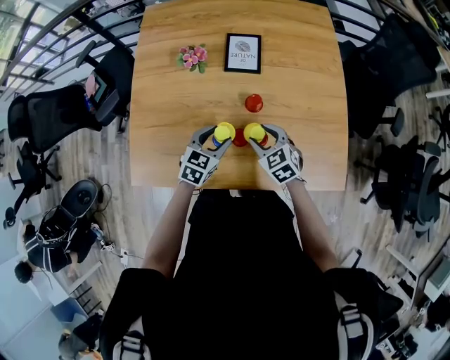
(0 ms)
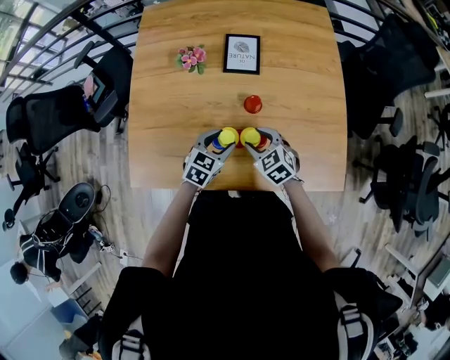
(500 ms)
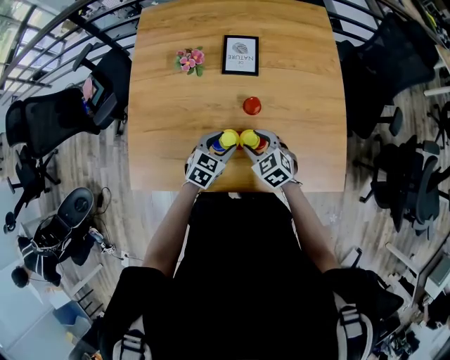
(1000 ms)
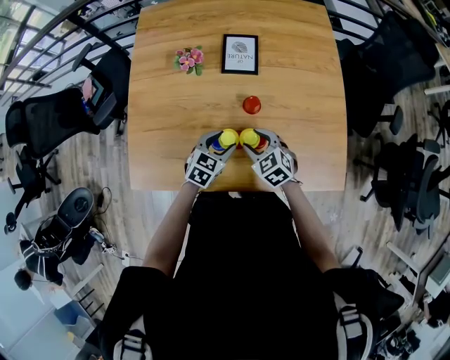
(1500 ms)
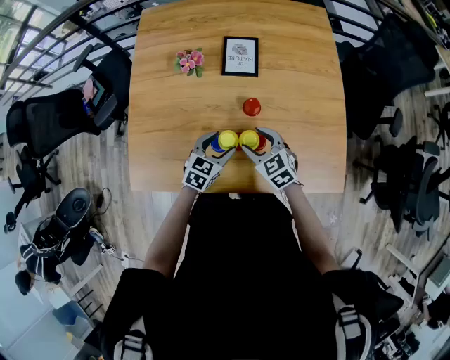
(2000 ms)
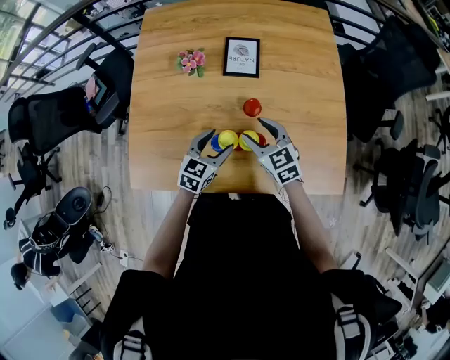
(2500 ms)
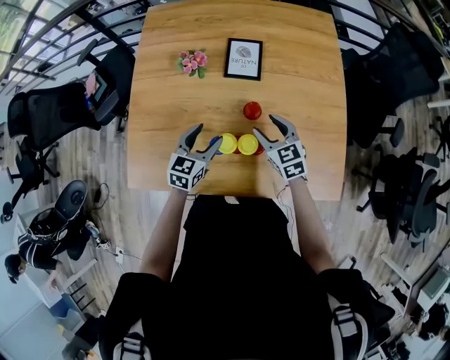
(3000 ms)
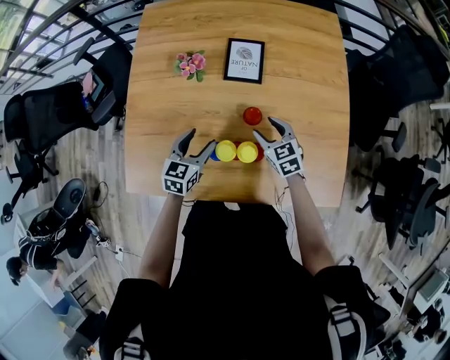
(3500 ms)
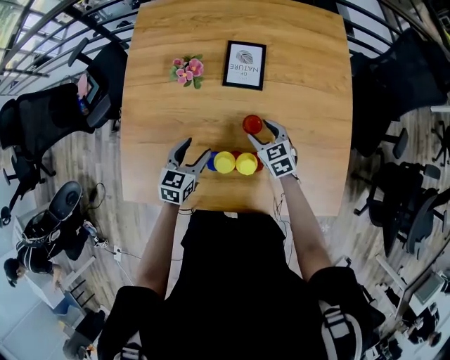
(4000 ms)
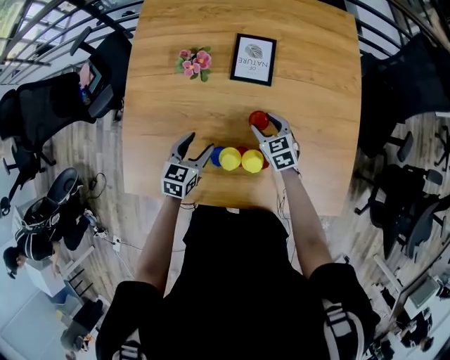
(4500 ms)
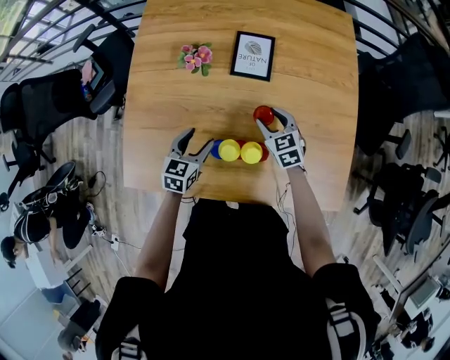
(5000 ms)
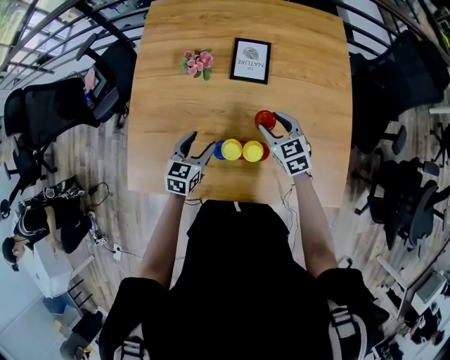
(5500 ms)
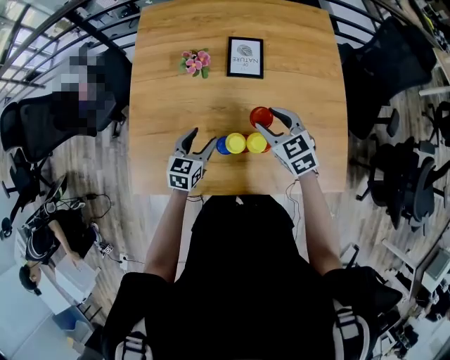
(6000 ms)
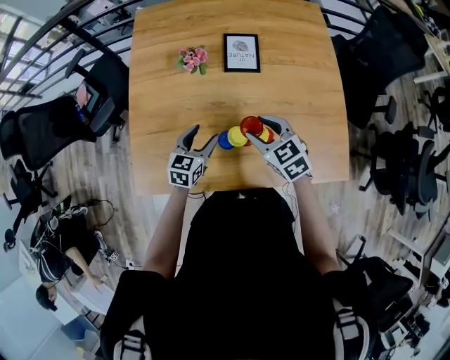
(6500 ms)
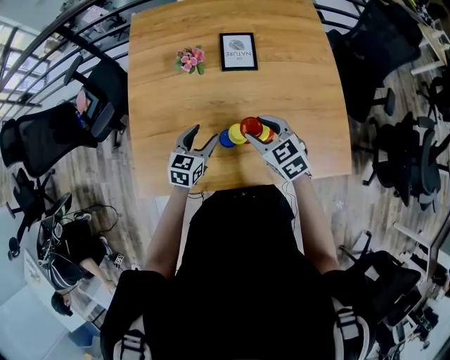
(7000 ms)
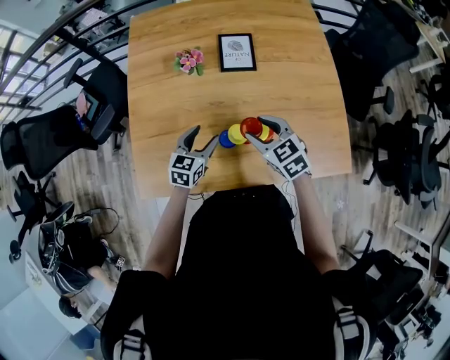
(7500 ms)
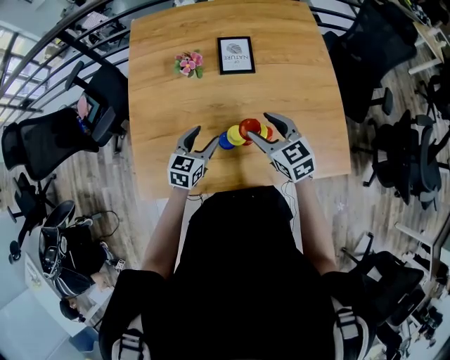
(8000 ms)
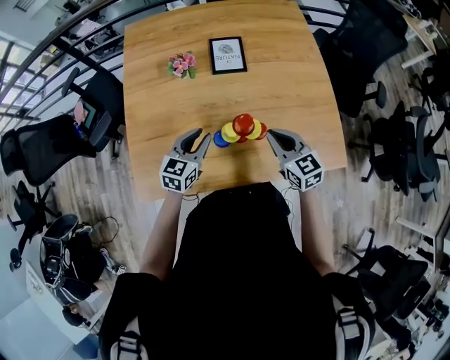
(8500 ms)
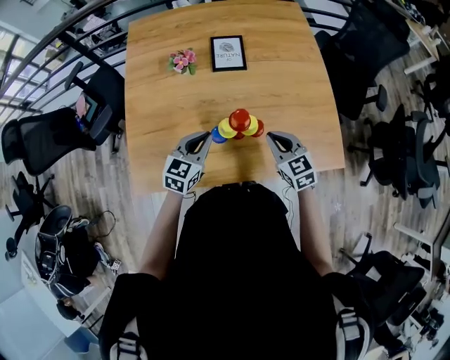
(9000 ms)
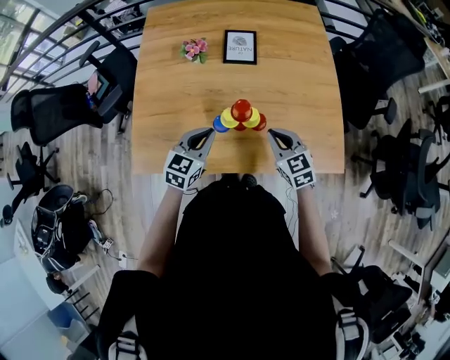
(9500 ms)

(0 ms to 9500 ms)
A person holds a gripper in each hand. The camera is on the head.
0 ms - 2000 ms: There are only small adjustments of the grippers.
2000 ms - 4000 ms: The left gripper shifts roughly 10 cm to the left and forward; the right gripper heads forward and downward, covering approximately 15 cm.
4000 ms - 5500 ms: The right gripper shifts roughly 10 cm upward.
5500 ms - 7500 ms: The right gripper travels backward, to the left and upward by roughly 15 cm.
7500 ms - 9500 ms: The right gripper is displaced to the right and backward by approximately 10 cm, and closes its fingers, while the left gripper travels backward, upward and to the right by some 10 cm, and closes.

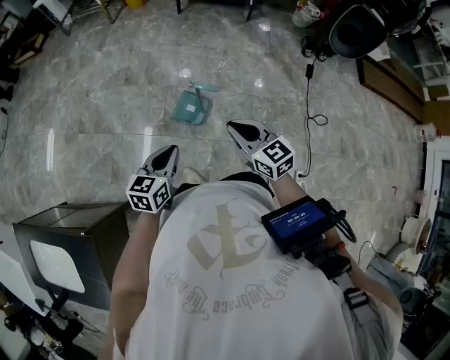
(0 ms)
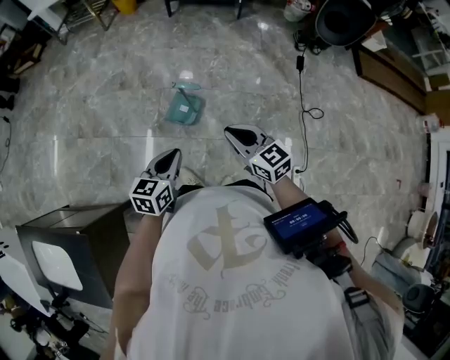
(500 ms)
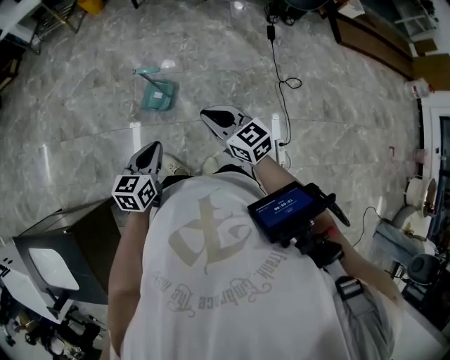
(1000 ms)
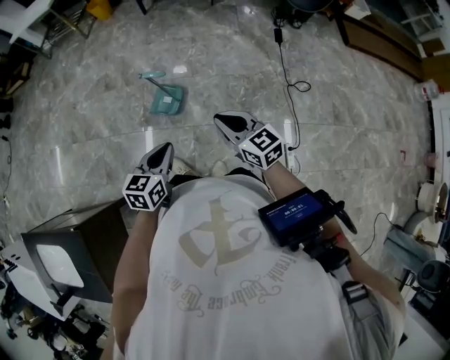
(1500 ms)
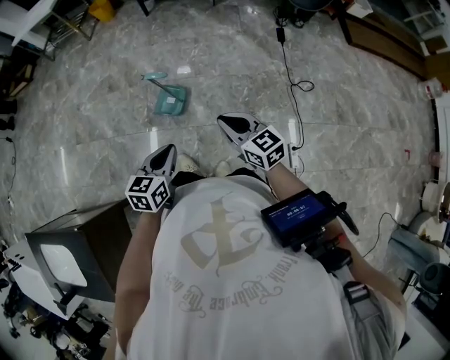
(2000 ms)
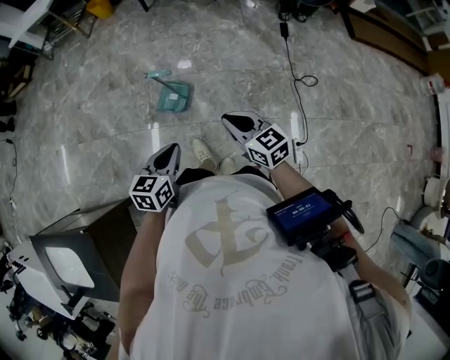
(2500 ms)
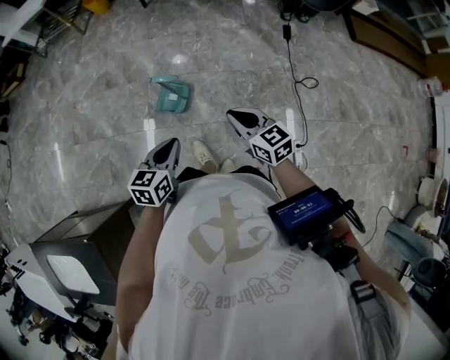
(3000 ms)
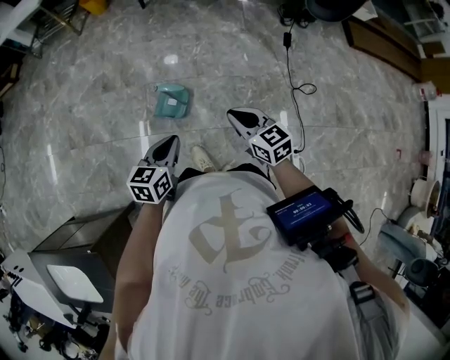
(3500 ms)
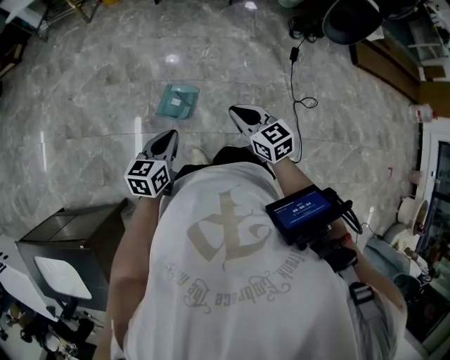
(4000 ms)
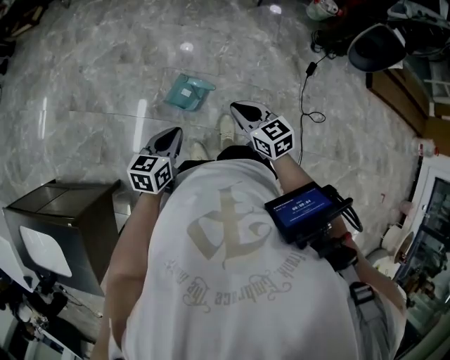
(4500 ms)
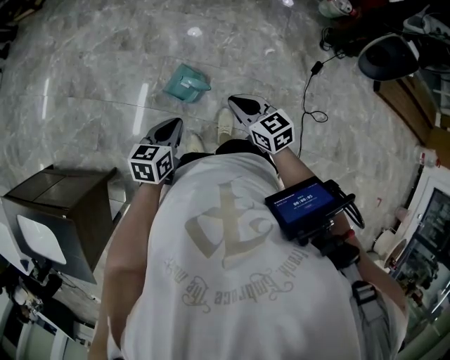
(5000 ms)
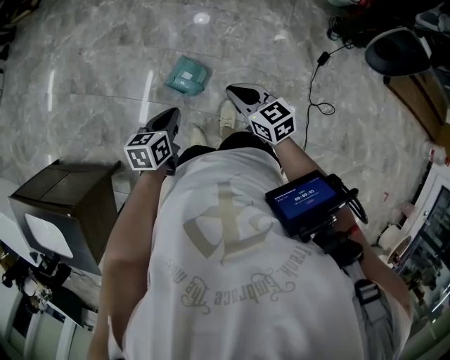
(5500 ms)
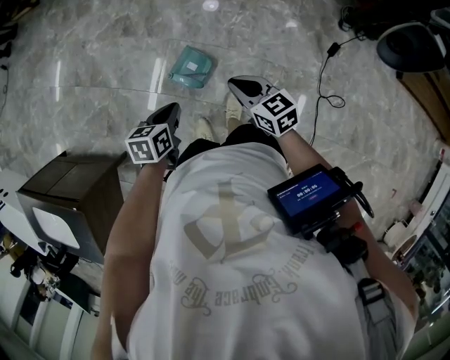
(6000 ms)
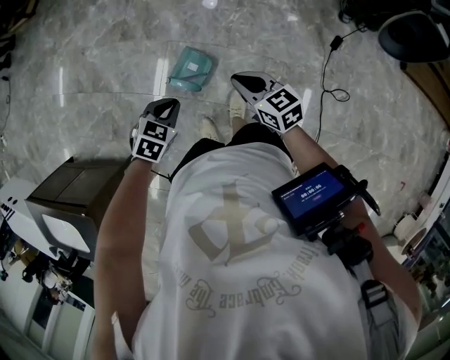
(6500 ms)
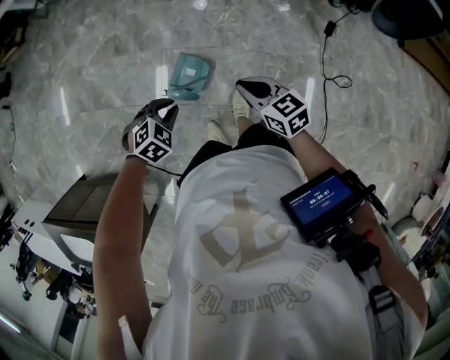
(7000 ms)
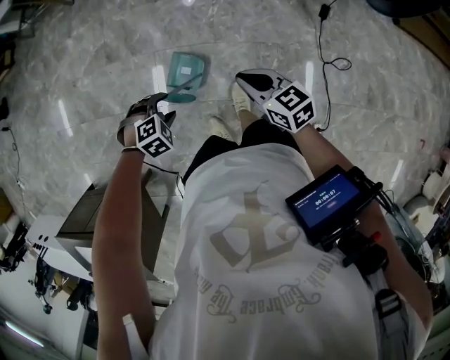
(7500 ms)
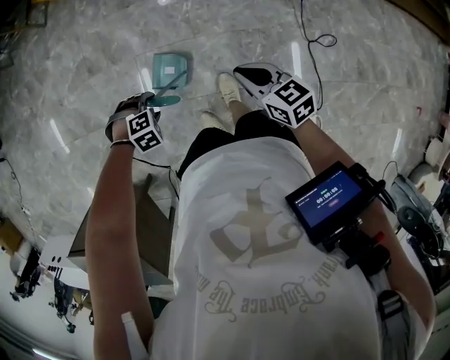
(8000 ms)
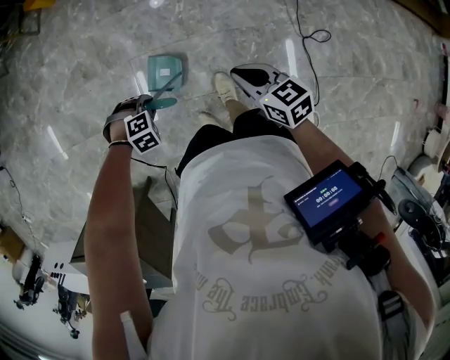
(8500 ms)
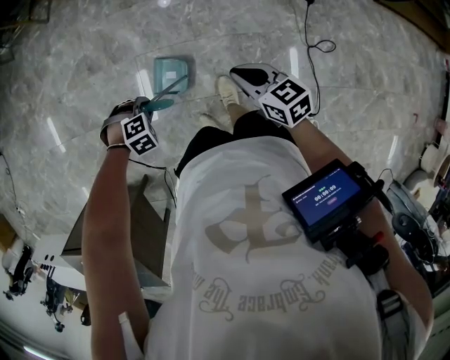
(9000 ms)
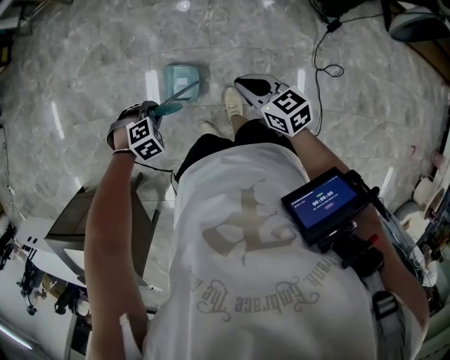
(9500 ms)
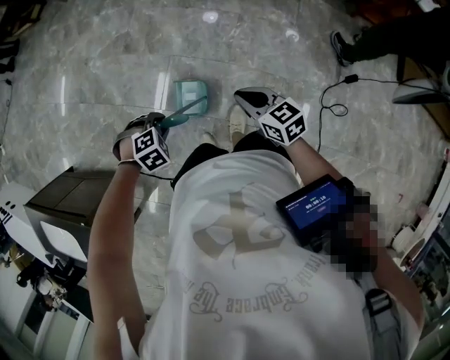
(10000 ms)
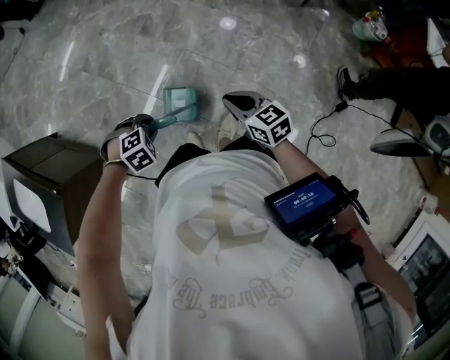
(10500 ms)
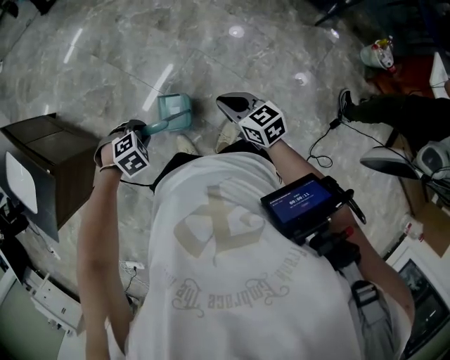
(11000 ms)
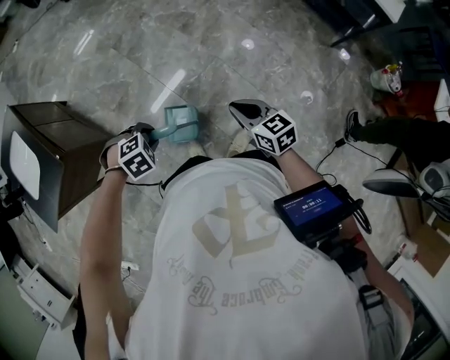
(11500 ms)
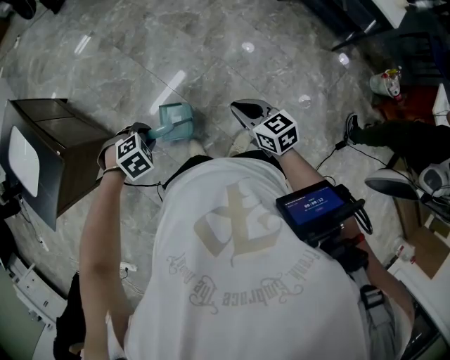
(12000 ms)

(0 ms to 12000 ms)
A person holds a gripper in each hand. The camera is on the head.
0 ms - 2000 ms: The two grippers go approximately 15 cm to the right and backward.
2000 ms - 4000 ms: Both grippers travel together forward and to the left, some 15 cm.
4000 ms - 6000 ms: The two grippers go approximately 10 cm forward and downward. The left gripper swivels about 30 degrees.
6000 ms - 8000 ms: The right gripper ends up approximately 10 cm from where it was, and changes its angle by roughly 20 degrees. Meanwhile the left gripper is displaced downward by about 10 cm, rolls clockwise, seen from behind, by some 100 degrees, and opens.
8000 ms - 10000 ms: The right gripper changes place by approximately 10 cm, and swivels some 20 degrees, while the left gripper goes some 10 cm upward, changes its angle by some 30 degrees, and closes up.
10000 ms - 12000 ms: The right gripper changes place by approximately 10 cm, and rotates some 30 degrees, while the left gripper ends up roughly 15 cm from where it was, and swivels approximately 30 degrees.

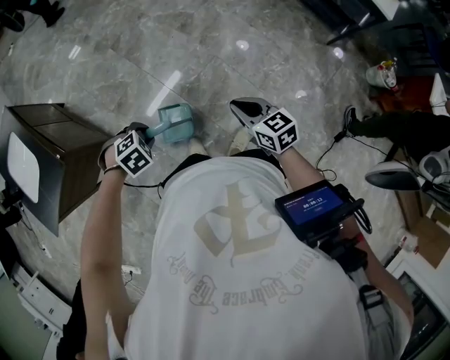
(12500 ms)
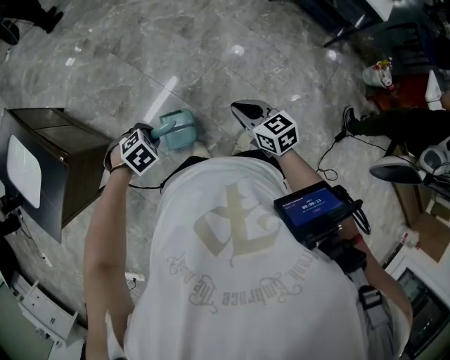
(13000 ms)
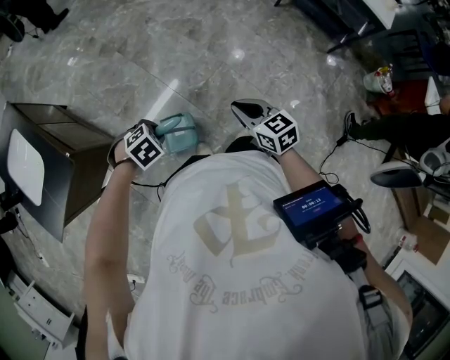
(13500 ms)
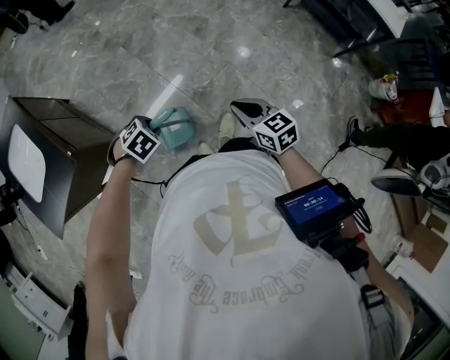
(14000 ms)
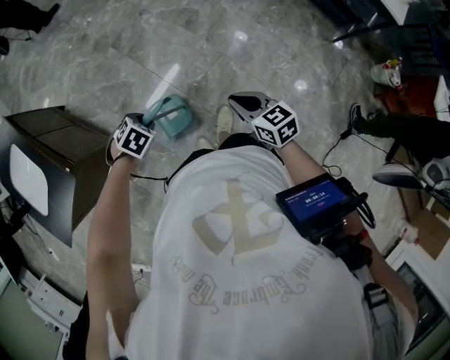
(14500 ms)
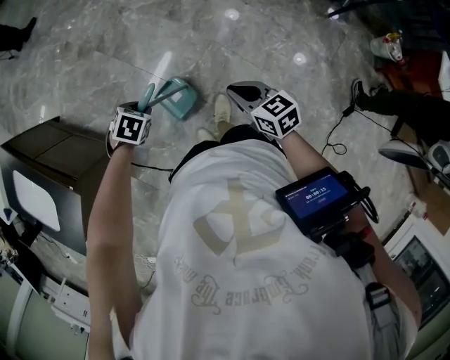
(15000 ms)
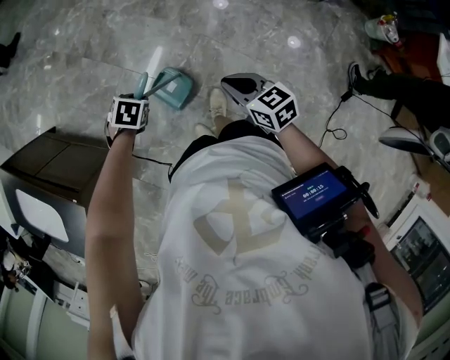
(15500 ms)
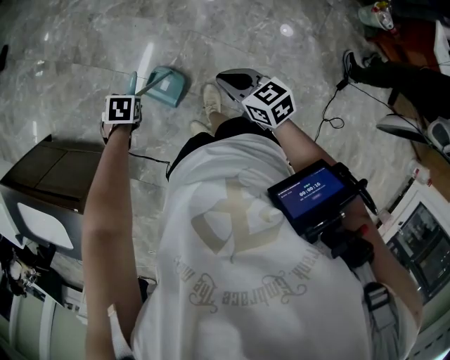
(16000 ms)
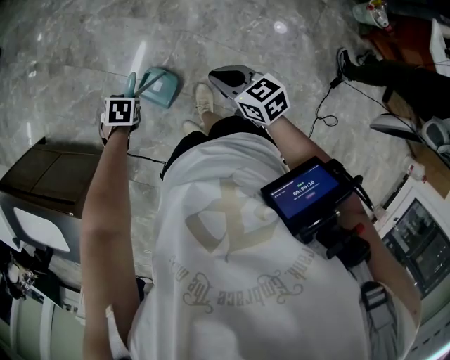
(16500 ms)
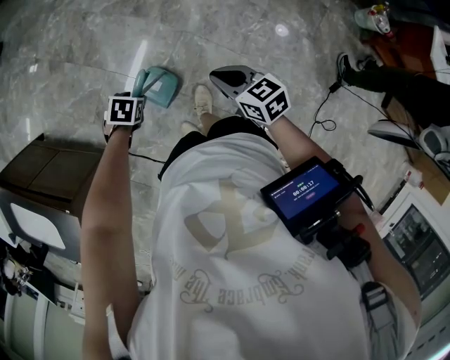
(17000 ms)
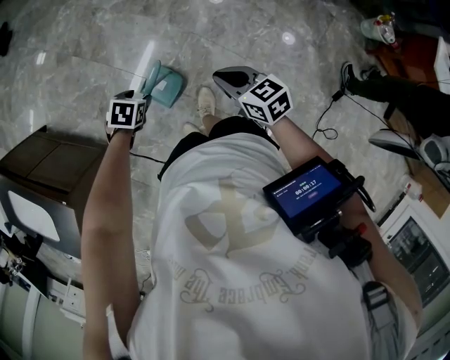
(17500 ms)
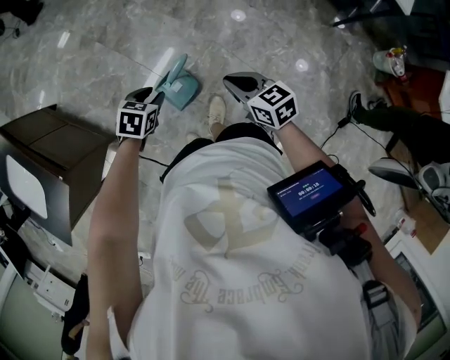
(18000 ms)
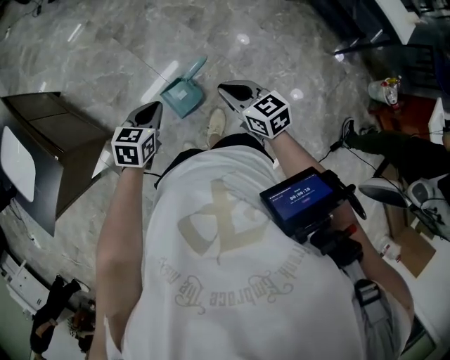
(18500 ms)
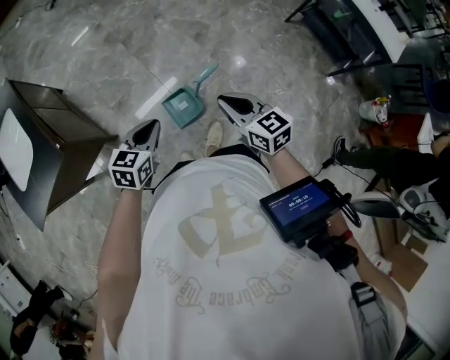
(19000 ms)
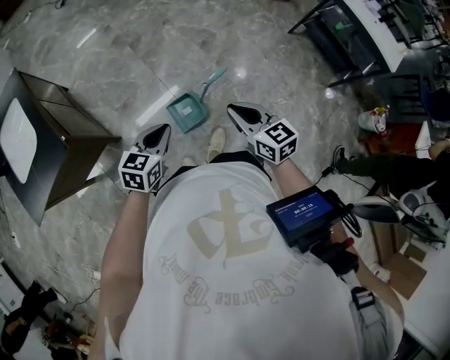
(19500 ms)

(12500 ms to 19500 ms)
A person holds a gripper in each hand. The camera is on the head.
12500 ms - 14500 ms: The right gripper moves some 10 cm. The left gripper ends up roughly 10 cm from where it was, and swivels some 20 degrees.
14500 ms - 16000 ms: The right gripper changes place by approximately 10 cm, while the left gripper changes place by about 20 cm.
16000 ms - 17500 ms: The left gripper opens its fingers.
17500 ms - 19500 ms: The right gripper shifts approximately 10 cm upward. The left gripper moves upward, roughly 15 cm, angles its fingers upward, by about 40 degrees, and closes.
